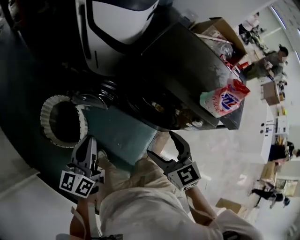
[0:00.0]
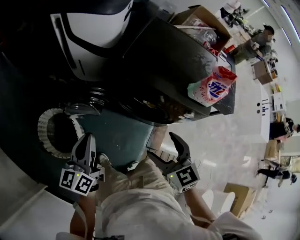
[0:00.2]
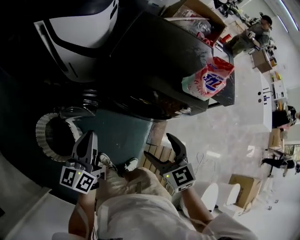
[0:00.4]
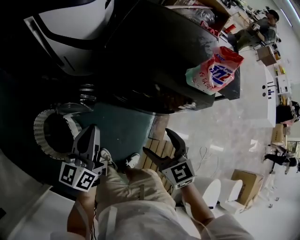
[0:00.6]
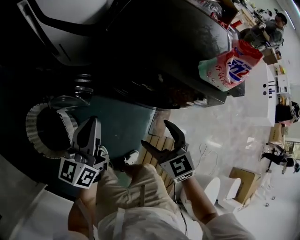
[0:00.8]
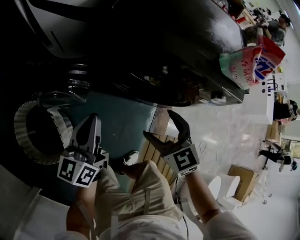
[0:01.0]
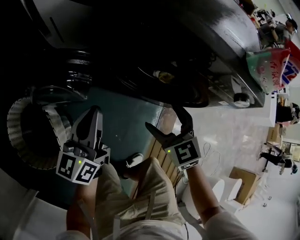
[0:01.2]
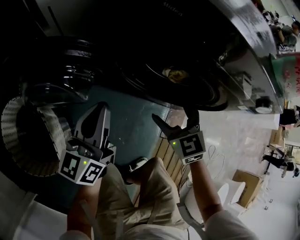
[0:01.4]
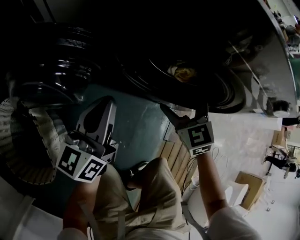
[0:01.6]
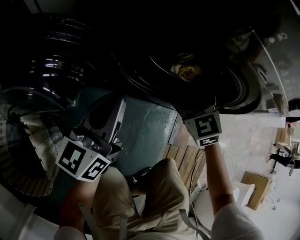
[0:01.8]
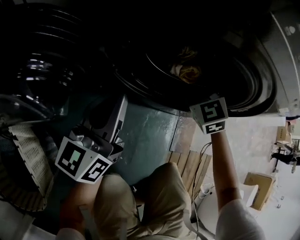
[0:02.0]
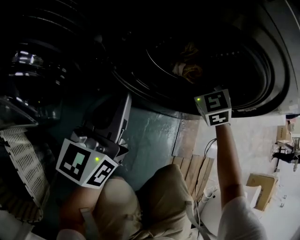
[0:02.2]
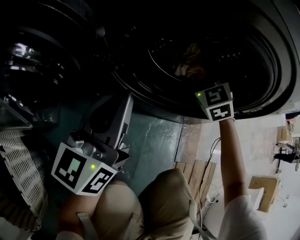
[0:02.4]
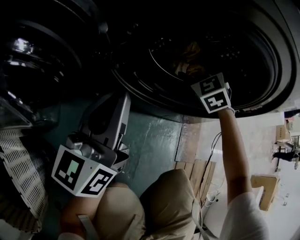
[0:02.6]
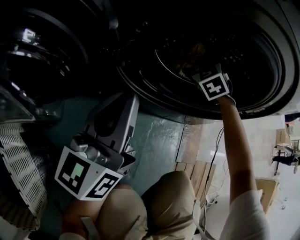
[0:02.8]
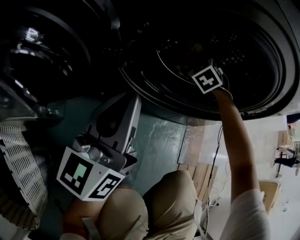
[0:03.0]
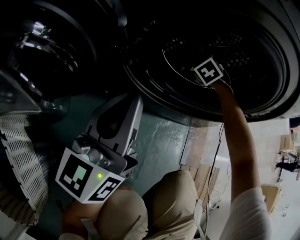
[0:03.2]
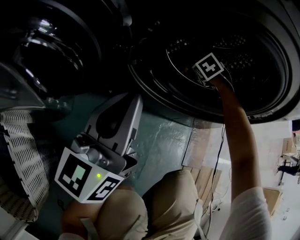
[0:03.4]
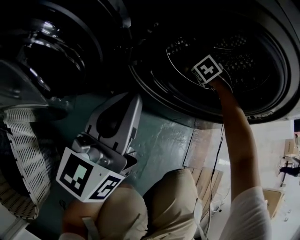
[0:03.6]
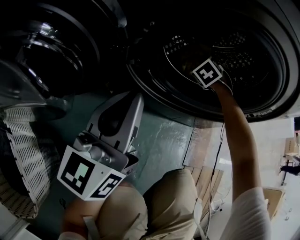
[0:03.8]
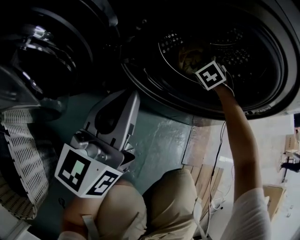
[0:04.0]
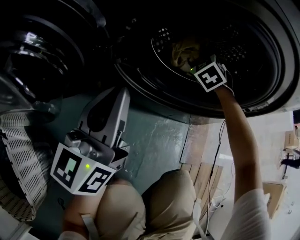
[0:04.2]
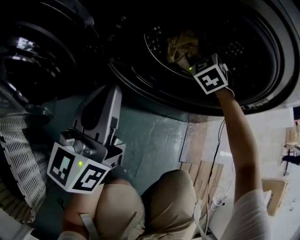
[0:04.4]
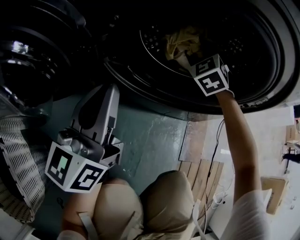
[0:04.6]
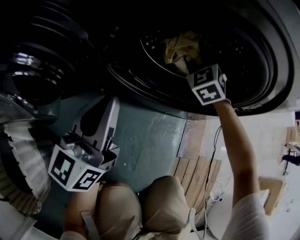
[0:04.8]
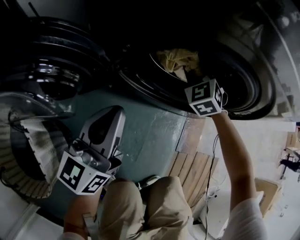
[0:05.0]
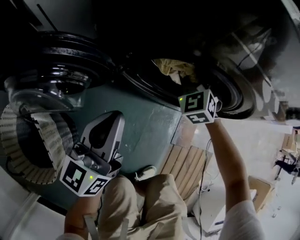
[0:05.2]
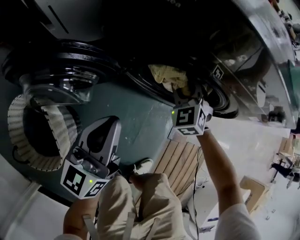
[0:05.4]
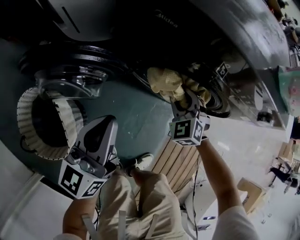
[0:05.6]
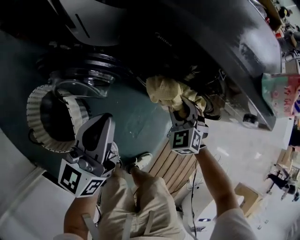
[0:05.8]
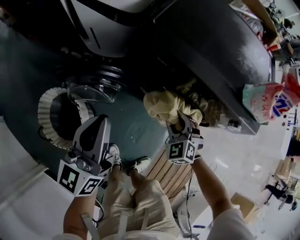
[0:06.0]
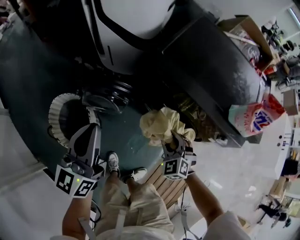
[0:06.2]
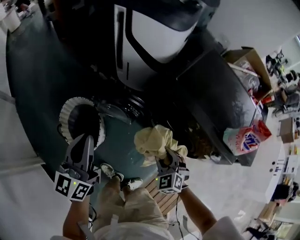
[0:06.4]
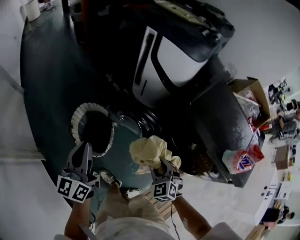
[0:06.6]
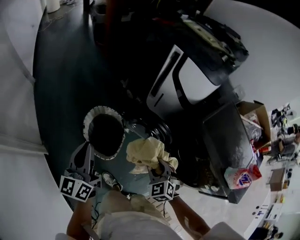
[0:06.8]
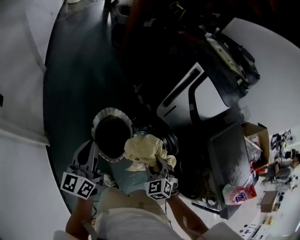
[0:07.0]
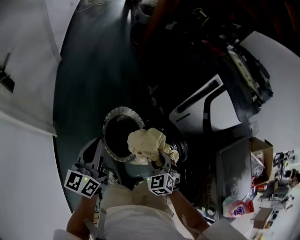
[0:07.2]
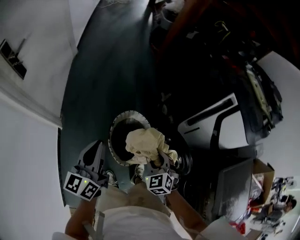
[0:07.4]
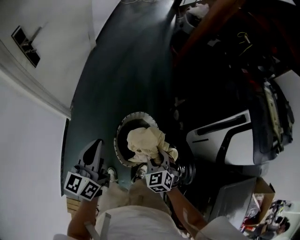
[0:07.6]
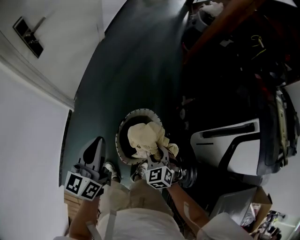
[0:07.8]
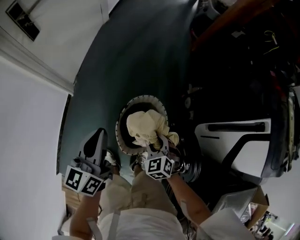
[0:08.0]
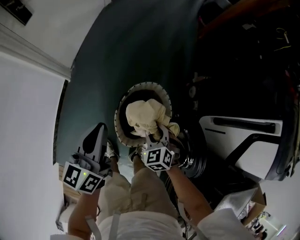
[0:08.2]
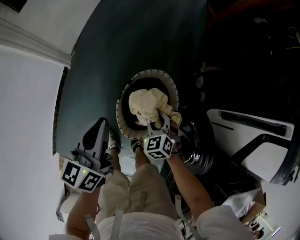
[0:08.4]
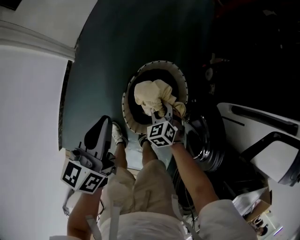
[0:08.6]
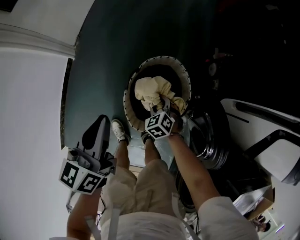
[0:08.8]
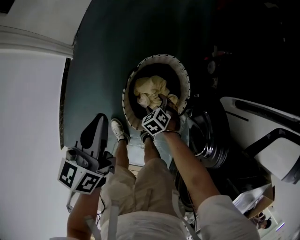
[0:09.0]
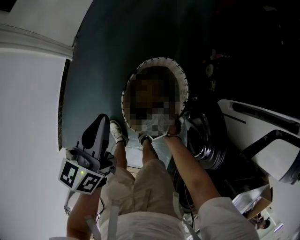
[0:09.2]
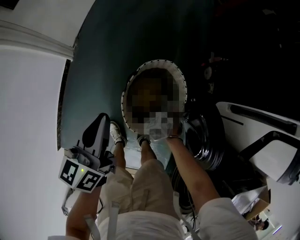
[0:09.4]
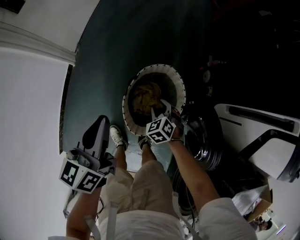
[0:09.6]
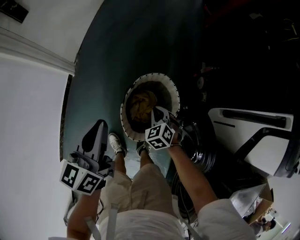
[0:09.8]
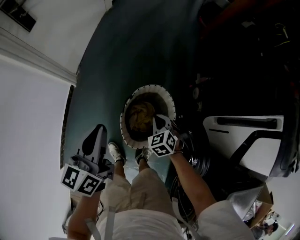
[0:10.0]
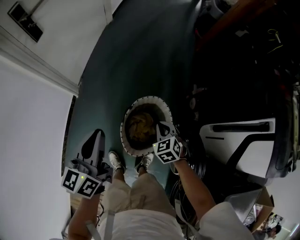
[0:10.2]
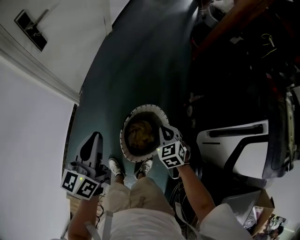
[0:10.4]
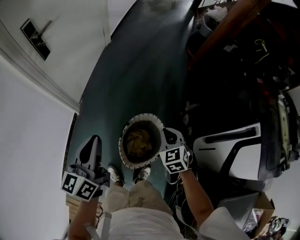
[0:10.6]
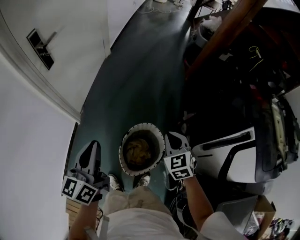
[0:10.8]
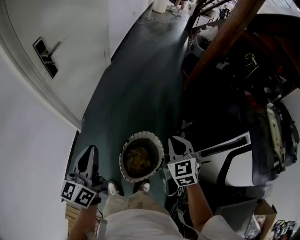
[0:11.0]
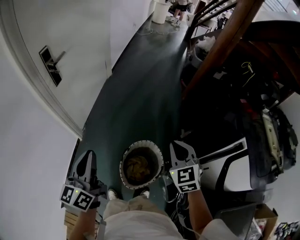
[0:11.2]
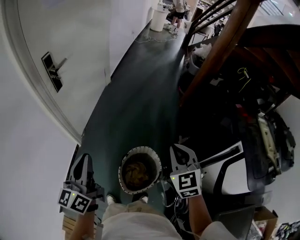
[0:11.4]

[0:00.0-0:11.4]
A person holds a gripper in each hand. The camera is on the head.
0:00.0 to 0:01.4: The left gripper moves downward and forward, some 35 cm, while the right gripper is displaced downward by some 40 cm.
0:01.4 to 0:02.8: The right gripper heads forward and downward, covering roughly 30 cm, and turns by about 30 degrees; the left gripper moves downward, some 15 cm.
0:02.8 to 0:04.2: The right gripper reaches roughly 10 cm downward, then returns, and closes.
0:04.2 to 0:05.6: The left gripper heads upward, covering some 25 cm, while the right gripper shifts roughly 25 cm upward and backward.
0:05.6 to 0:07.2: The pair of grippers is taken roughly 50 cm. The left gripper swivels roughly 60 degrees. The right gripper rotates about 50 degrees.
0:07.2 to 0:08.6: The left gripper heads downward, covering some 20 cm, and swivels some 30 degrees; the right gripper is displaced downward by roughly 35 cm, and turns by roughly 30 degrees.
0:08.6 to 0:10.0: Both grippers move upward, some 10 cm.
0:10.0 to 0:11.4: The left gripper goes about 25 cm upward, and swivels approximately 20 degrees. Meanwhile the right gripper is displaced upward by some 40 cm, and tips its fingers upward by some 30 degrees.

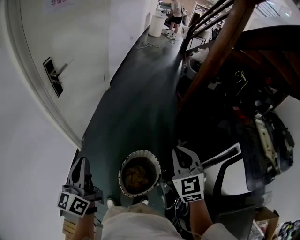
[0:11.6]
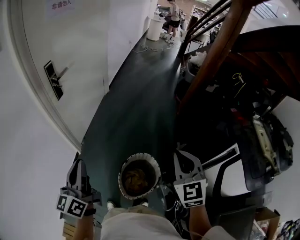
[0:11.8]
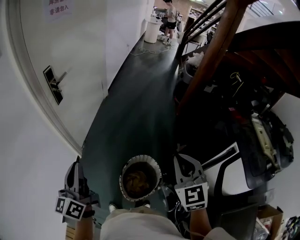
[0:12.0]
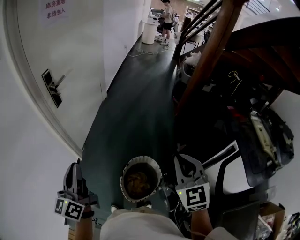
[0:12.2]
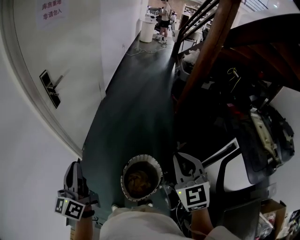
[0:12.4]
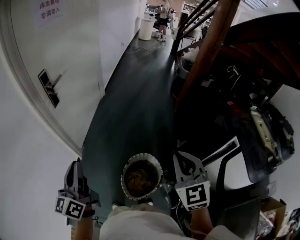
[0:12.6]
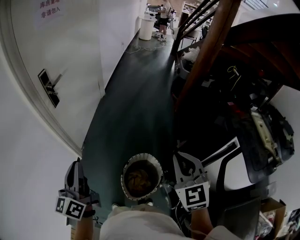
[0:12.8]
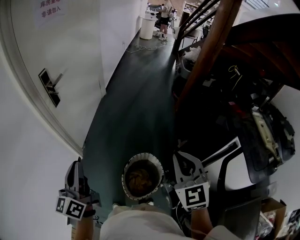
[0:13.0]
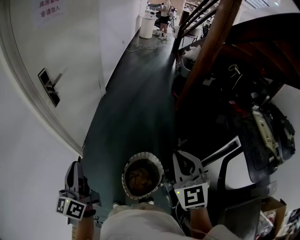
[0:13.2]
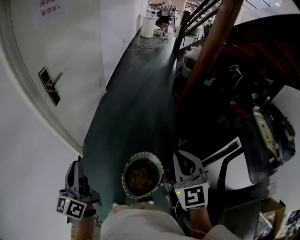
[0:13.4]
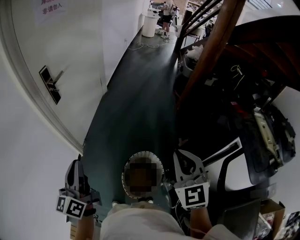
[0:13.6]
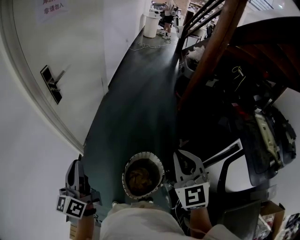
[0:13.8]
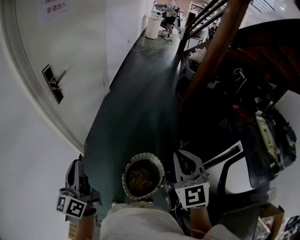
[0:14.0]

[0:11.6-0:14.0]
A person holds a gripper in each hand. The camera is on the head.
0:11.6 to 0:12.8: The right gripper shifts by roughly 5 cm.
0:12.8 to 0:14.0: The grippers move only a little.

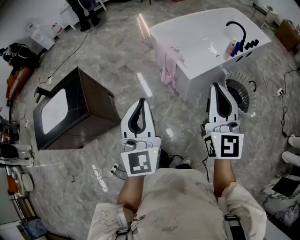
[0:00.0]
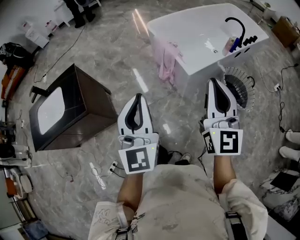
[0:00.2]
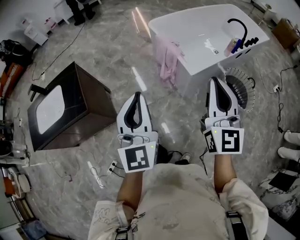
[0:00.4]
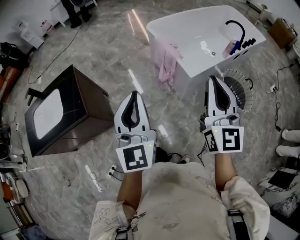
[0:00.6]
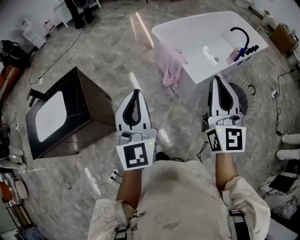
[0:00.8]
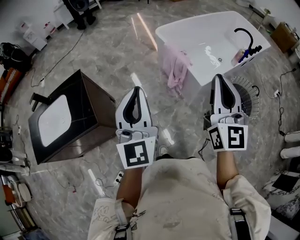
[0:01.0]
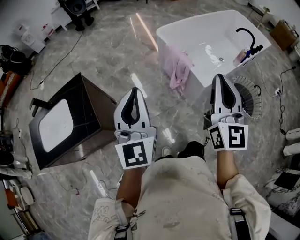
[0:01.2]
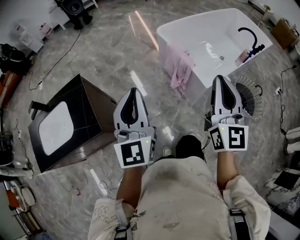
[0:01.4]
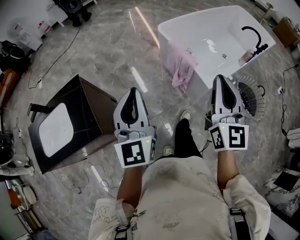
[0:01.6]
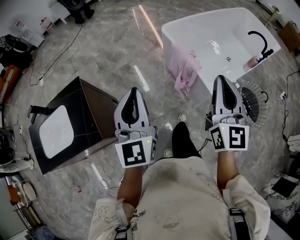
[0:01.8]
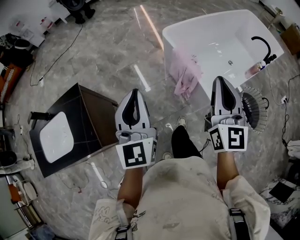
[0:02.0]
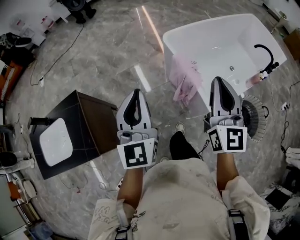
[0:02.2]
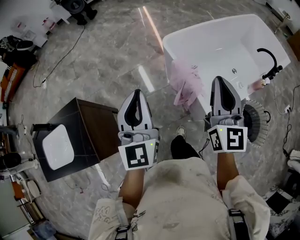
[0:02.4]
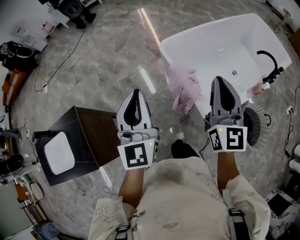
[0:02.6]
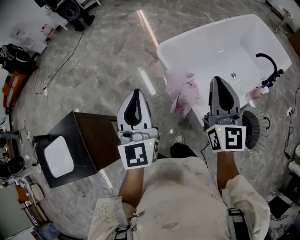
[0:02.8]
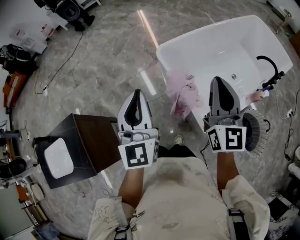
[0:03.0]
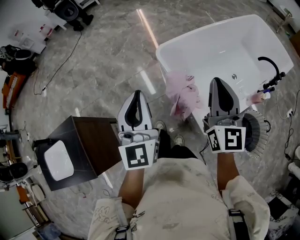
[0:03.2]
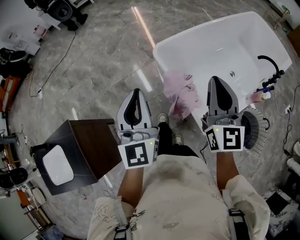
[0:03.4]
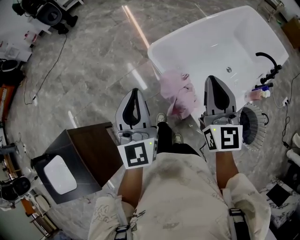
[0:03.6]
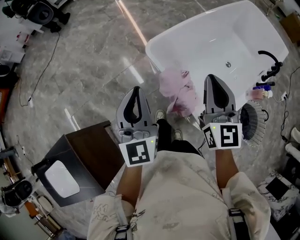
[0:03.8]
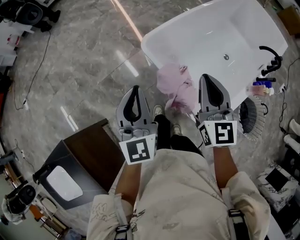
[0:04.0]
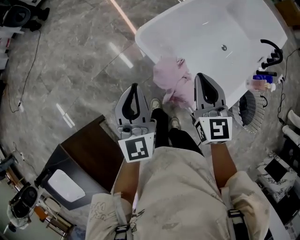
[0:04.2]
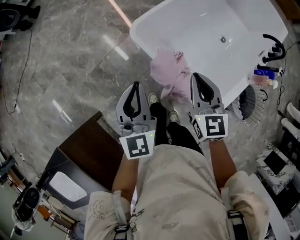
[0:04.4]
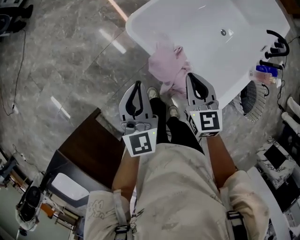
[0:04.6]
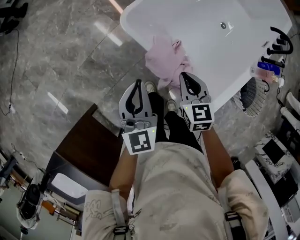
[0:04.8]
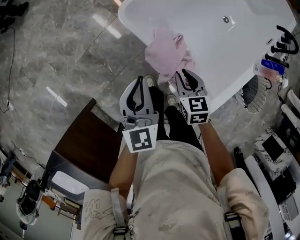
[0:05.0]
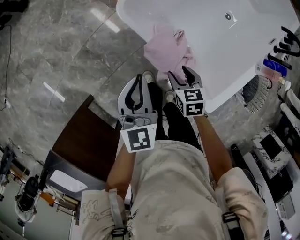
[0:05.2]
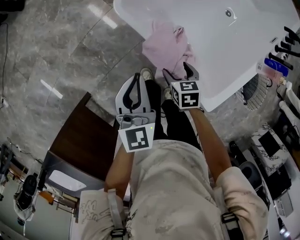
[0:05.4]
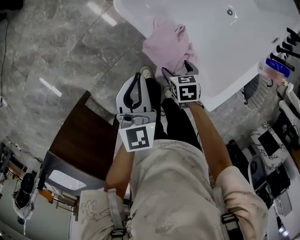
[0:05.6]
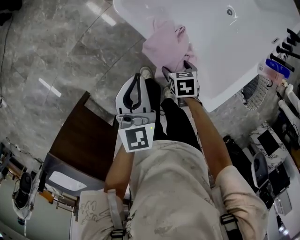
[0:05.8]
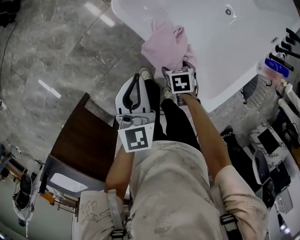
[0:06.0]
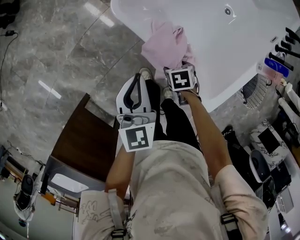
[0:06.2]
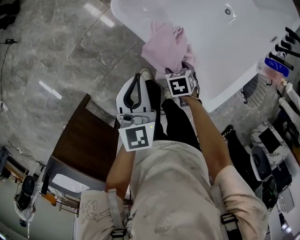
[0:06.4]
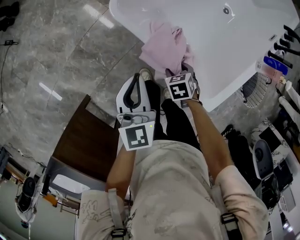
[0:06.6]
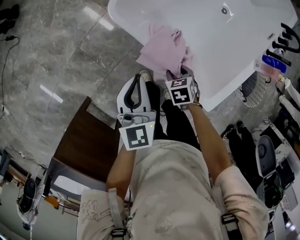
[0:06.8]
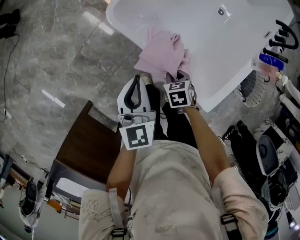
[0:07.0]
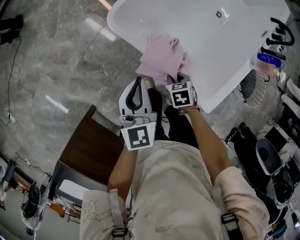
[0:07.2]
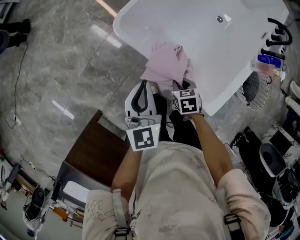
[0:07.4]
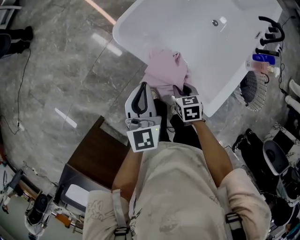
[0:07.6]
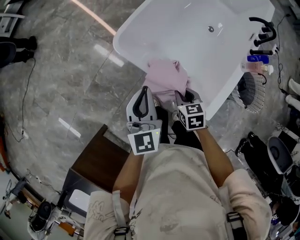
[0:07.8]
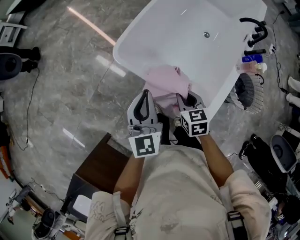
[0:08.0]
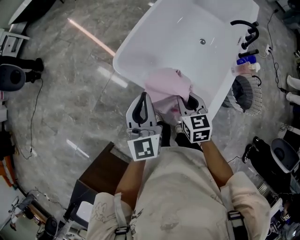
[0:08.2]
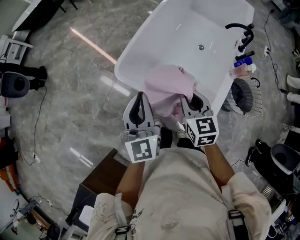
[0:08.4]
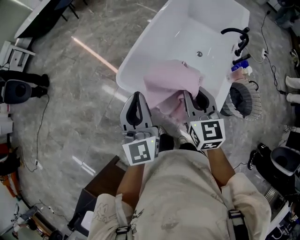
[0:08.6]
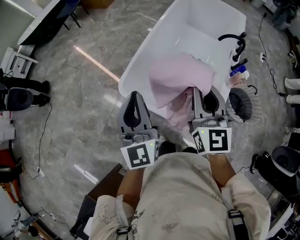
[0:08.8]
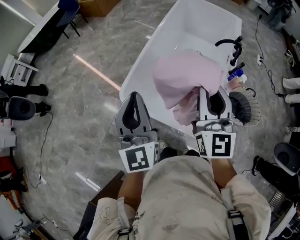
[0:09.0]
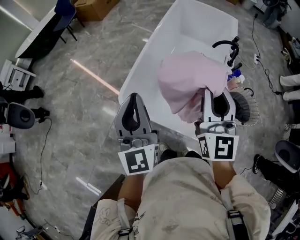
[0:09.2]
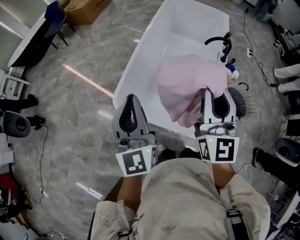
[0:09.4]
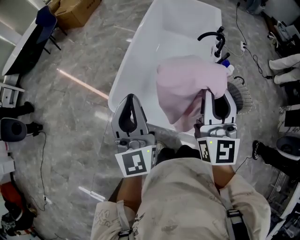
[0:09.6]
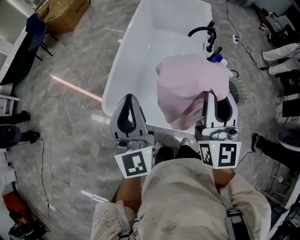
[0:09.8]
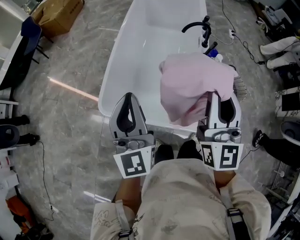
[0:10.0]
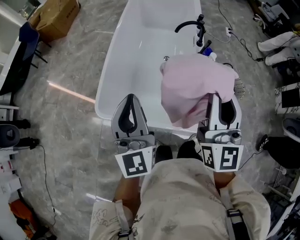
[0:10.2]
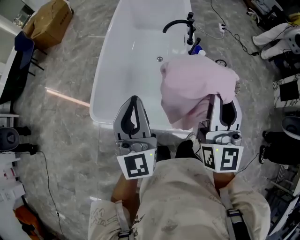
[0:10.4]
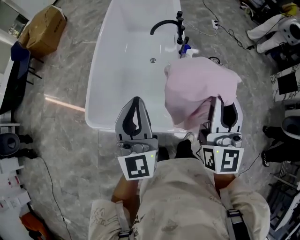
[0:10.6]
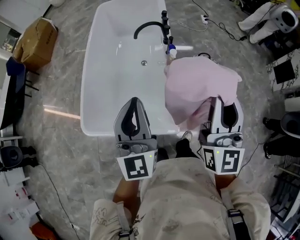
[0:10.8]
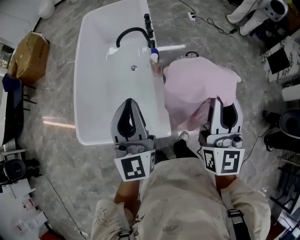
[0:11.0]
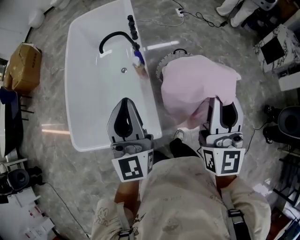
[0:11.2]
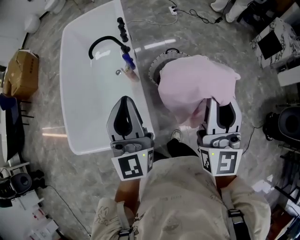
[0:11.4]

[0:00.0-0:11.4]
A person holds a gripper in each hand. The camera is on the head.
0:00.0 to 0:01.4: Both grippers travel together to the left and forward, some 25 cm.
0:01.4 to 0:02.8: The left gripper heads forward and to the right, covering approximately 35 cm, while the right gripper travels forward by about 35 cm.
0:02.8 to 0:04.2: Both grippers travel together forward and downward, approximately 25 cm. The right gripper rotates approximately 20 degrees.
0:04.2 to 0:05.6: The left gripper moves downward, roughly 20 cm, while the right gripper travels downward by some 40 cm, tilts its fingers roughly 50 degrees downward, and opens its fingers.
0:05.6 to 0:07.2: The right gripper closes.
0:07.2 to 0:08.6: The right gripper moves upward, some 40 cm, and tips its fingers upward by about 50 degrees. The left gripper is displaced upward by approximately 25 cm, and rotates roughly 20 degrees.
0:08.6 to 0:10.0: The right gripper is displaced upward by roughly 15 cm, and rotates about 40 degrees. The left gripper ends up some 10 cm from where it was, and changes its angle by about 20 degrees.
0:10.0 to 0:11.4: The two grippers travel together, to the right, roughly 50 cm. The left gripper swivels roughly 20 degrees, while the right gripper rotates roughly 20 degrees.
